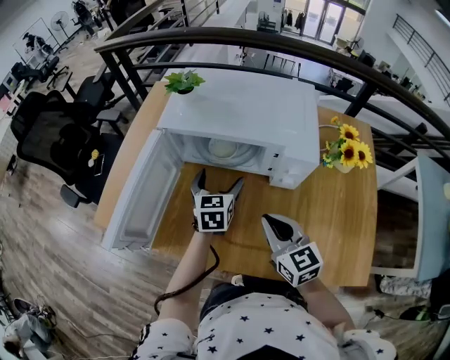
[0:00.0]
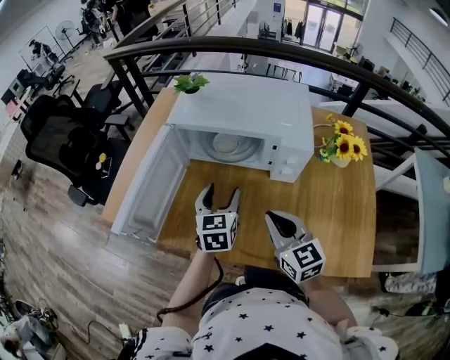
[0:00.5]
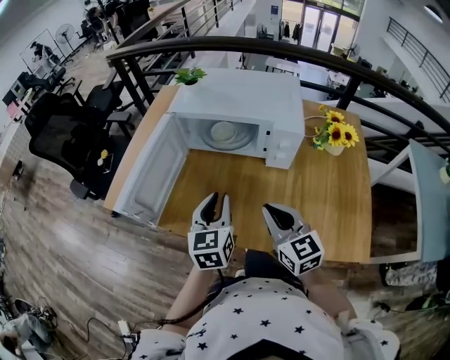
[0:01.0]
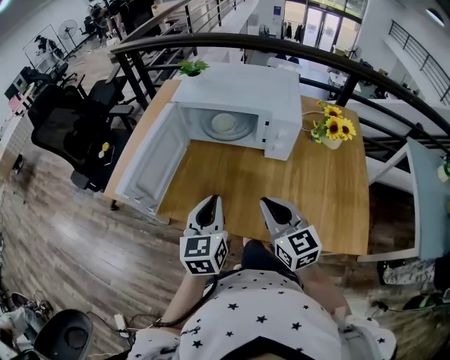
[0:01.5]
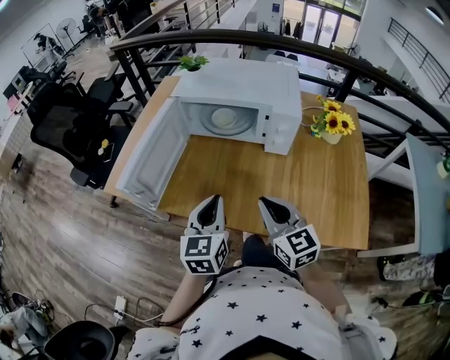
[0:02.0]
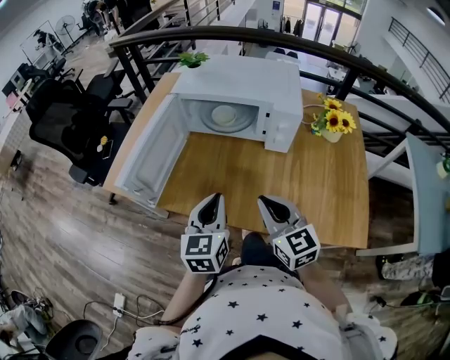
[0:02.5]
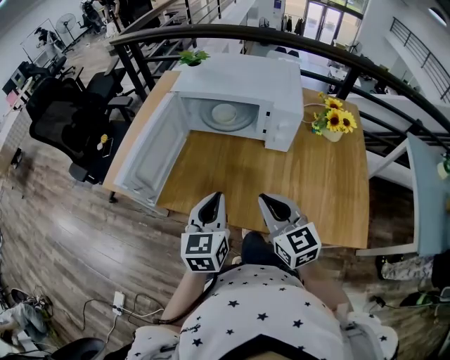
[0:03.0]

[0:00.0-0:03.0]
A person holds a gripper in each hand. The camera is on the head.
0:00.0 to 0:01.5: The left gripper goes about 25 cm backward, and closes up; the right gripper shifts roughly 10 cm backward.
0:01.5 to 0:03.0: The grippers stay close to where they were, moving slightly.

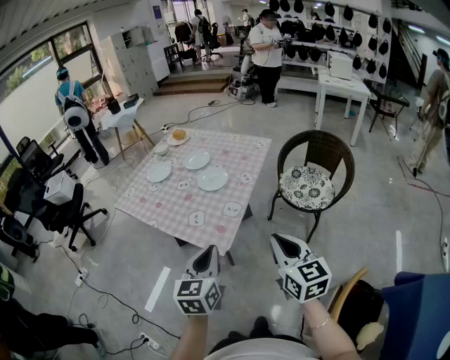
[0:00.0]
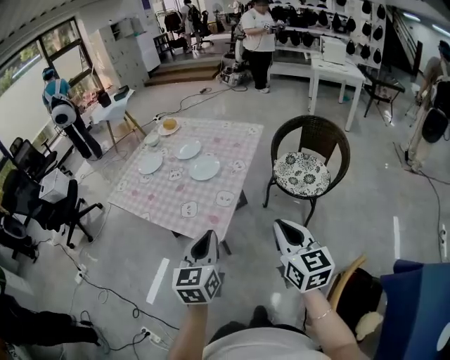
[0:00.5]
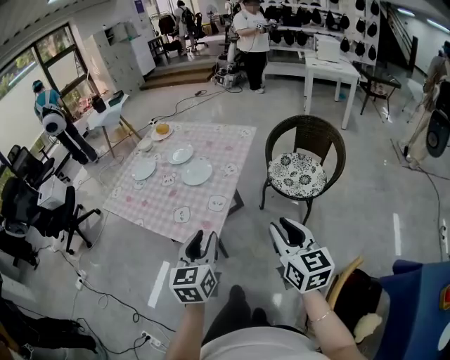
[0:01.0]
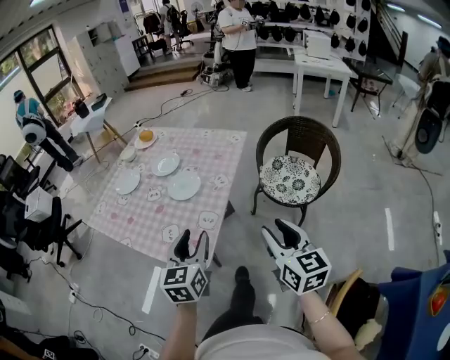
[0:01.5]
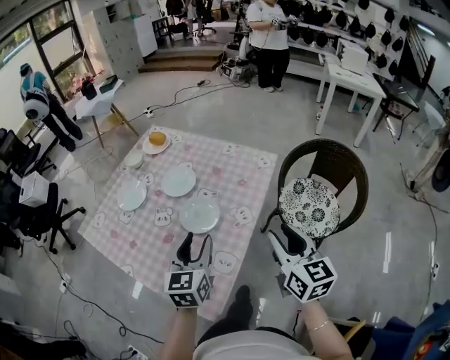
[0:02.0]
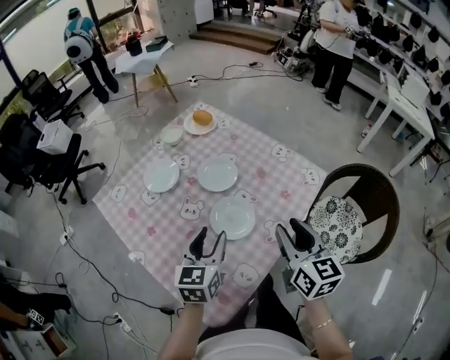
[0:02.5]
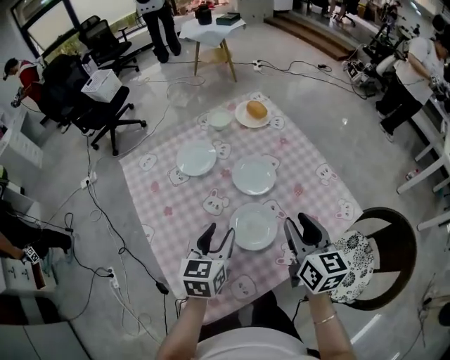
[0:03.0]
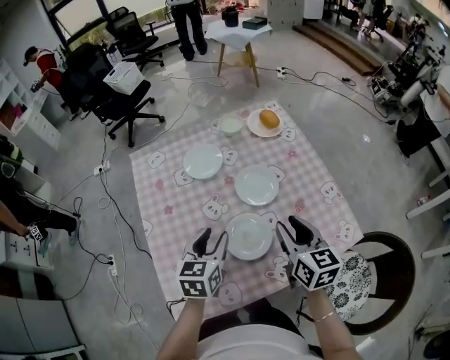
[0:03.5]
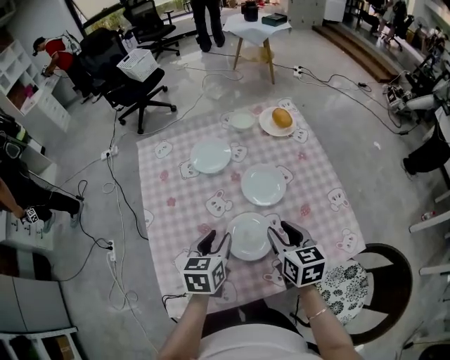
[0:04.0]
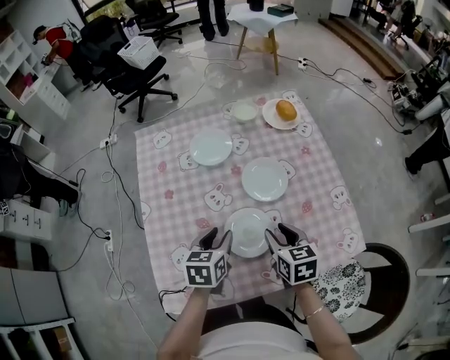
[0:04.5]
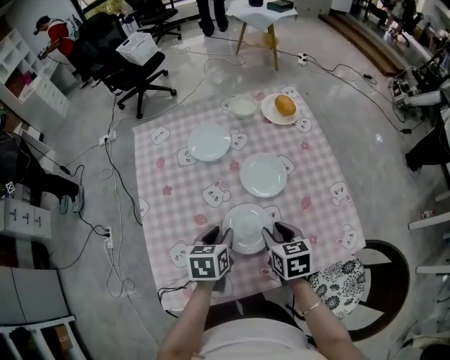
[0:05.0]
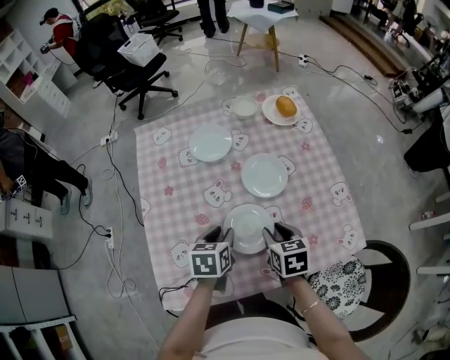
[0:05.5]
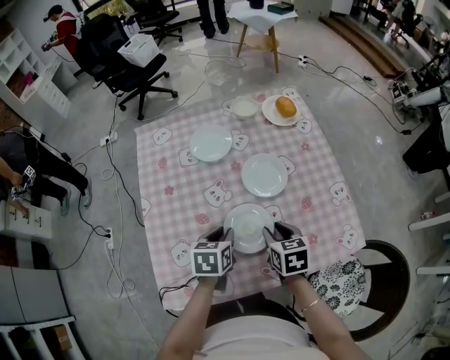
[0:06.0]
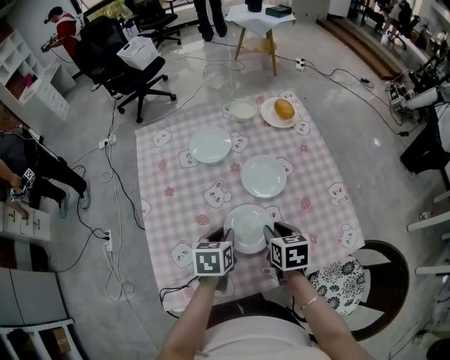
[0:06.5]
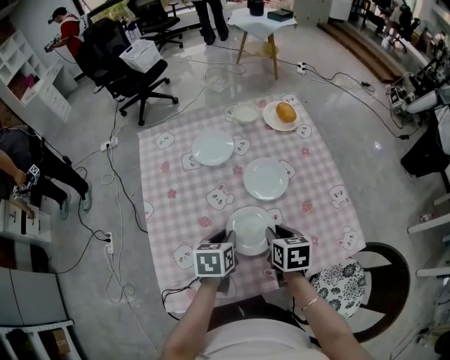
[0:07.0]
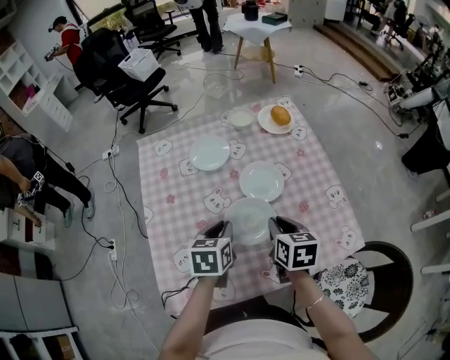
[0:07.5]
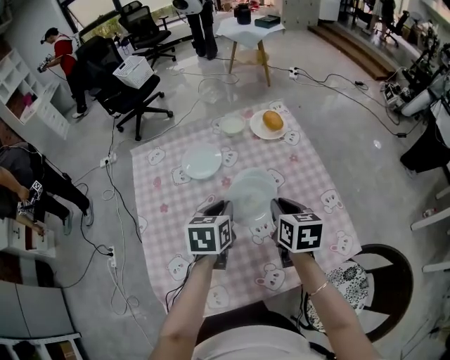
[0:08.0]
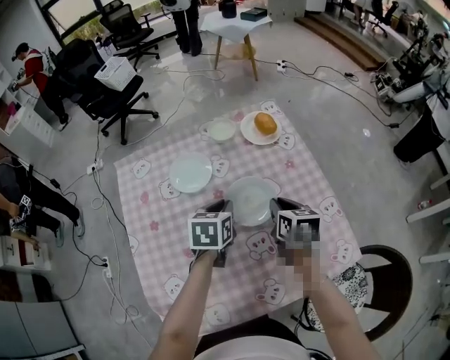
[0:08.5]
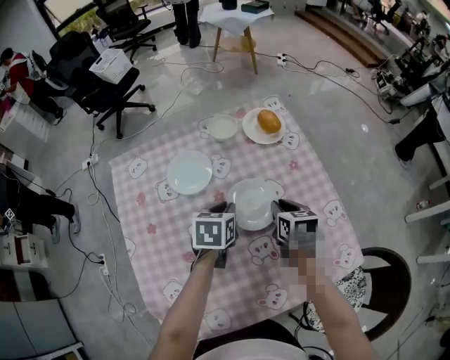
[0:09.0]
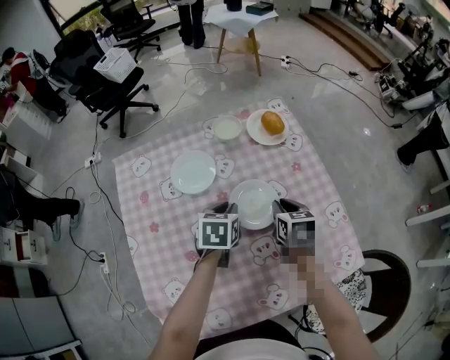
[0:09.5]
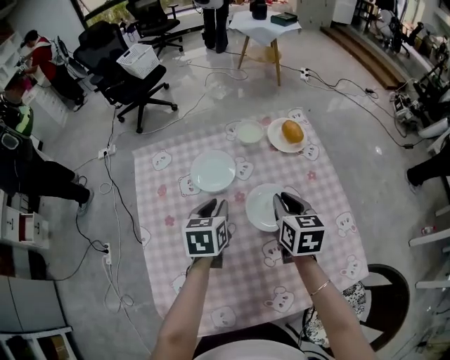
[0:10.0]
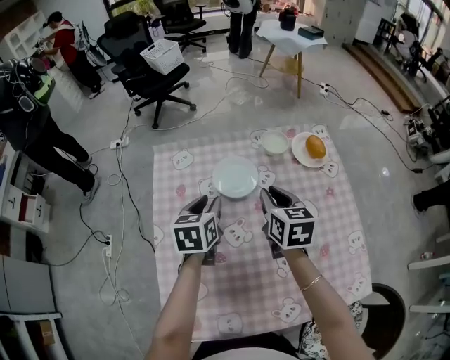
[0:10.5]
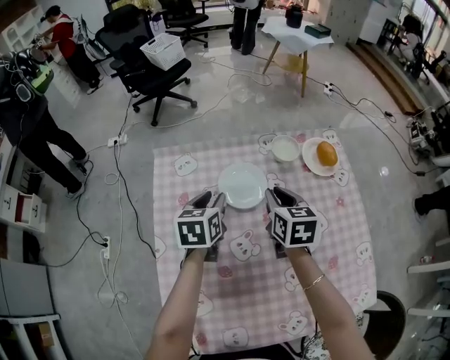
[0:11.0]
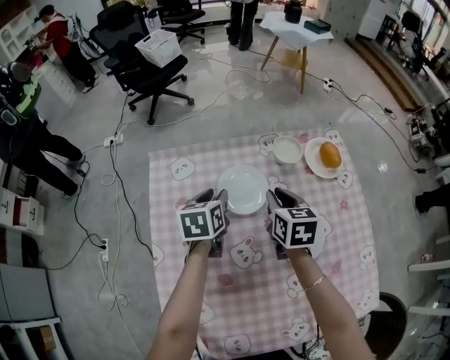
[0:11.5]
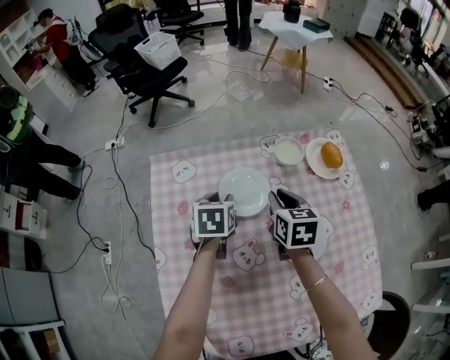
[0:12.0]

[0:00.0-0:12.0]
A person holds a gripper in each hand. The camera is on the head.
0:00.0 to 0:02.0: Both grippers move forward, roughly 35 cm. The left gripper opens its fingers, while the right gripper opens.
0:02.0 to 0:04.0: The left gripper ends up roughly 20 cm from where it was, and changes its angle by about 50 degrees; the right gripper shifts by approximately 35 cm, and rotates roughly 60 degrees.
0:04.0 to 0:06.0: The two grippers go about 5 cm downward.
0:06.0 to 0:08.0: The left gripper is displaced forward and upward by roughly 15 cm. The right gripper heads upward, forward and to the right, covering some 15 cm, and closes up.
0:08.0 to 0:10.0: The grippers both shift forward and to the left by about 10 cm.
0:10.0 to 0:12.0: The right gripper shifts about 20 cm forward and to the left. Meanwhile the left gripper goes roughly 20 cm forward, to the left and downward.

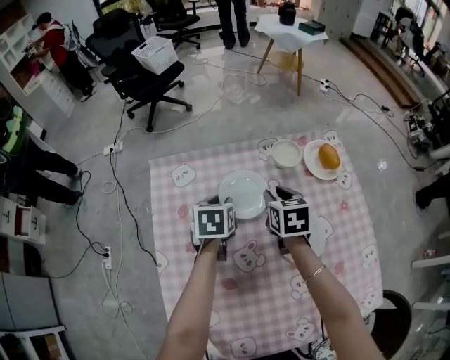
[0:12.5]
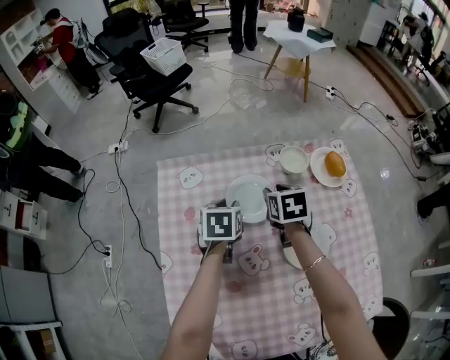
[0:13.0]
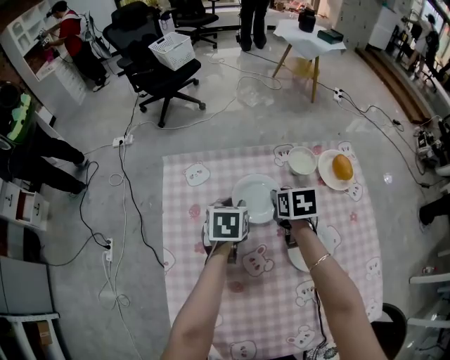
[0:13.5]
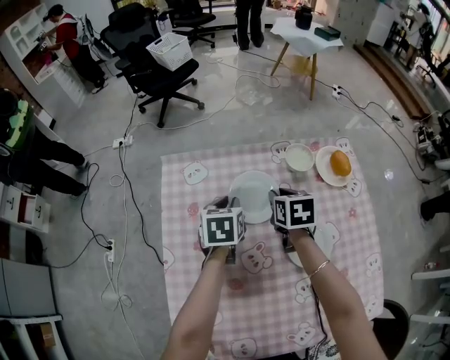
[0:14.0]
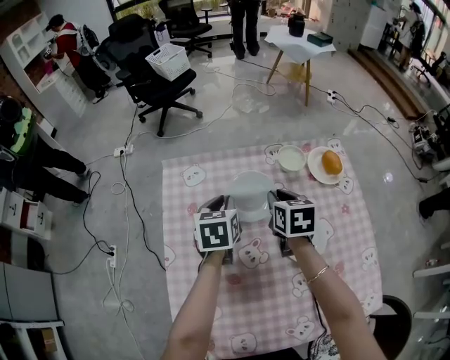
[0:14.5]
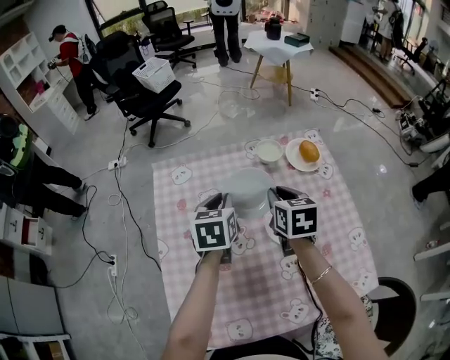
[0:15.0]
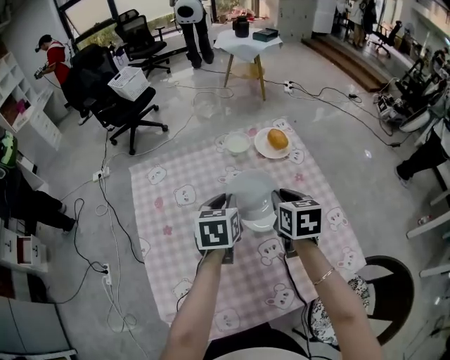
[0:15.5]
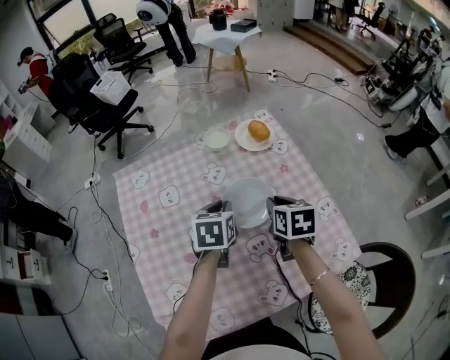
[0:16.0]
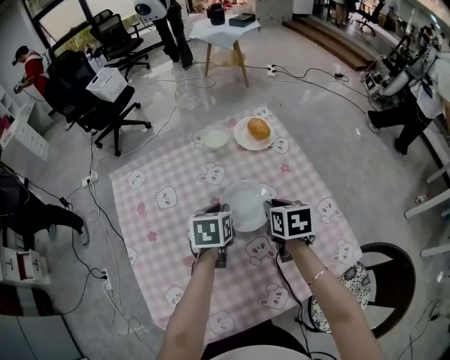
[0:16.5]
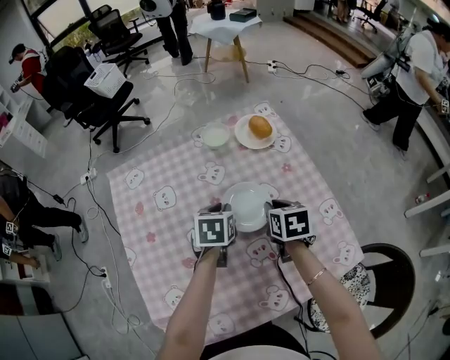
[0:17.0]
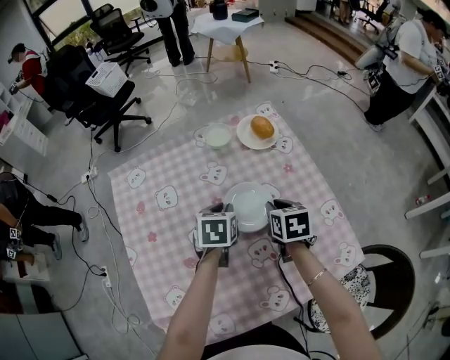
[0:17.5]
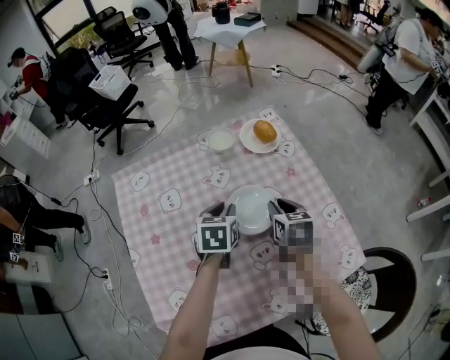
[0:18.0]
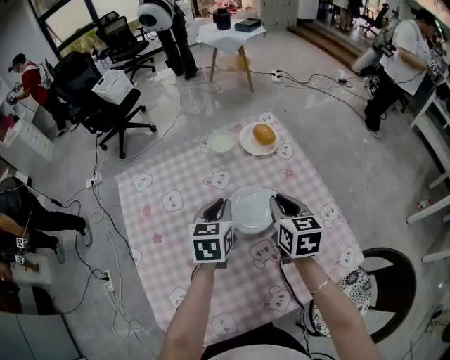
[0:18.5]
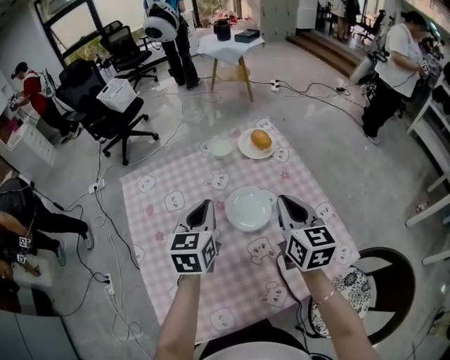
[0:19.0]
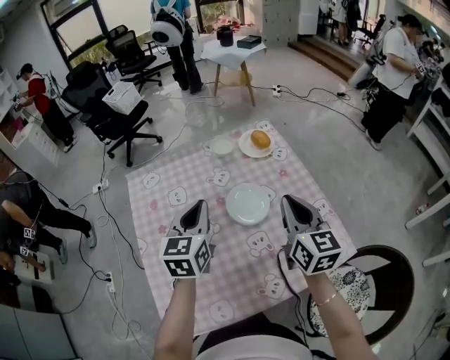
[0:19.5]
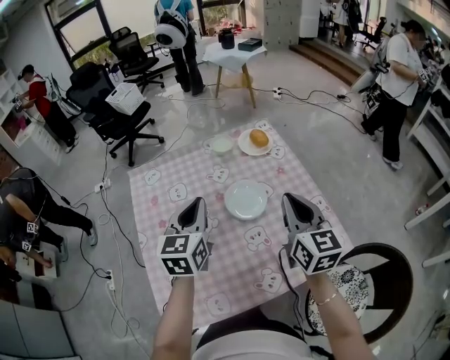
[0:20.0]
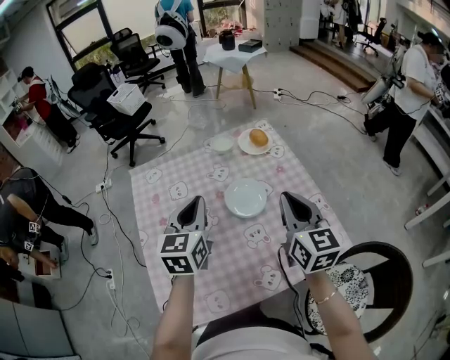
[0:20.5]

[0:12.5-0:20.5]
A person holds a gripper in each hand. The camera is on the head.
0:12.5 to 0:14.5: The left gripper goes approximately 5 cm upward, while the right gripper moves about 5 cm.
0:14.5 to 0:16.5: The two grippers go approximately 25 cm to the right and backward. The left gripper rotates about 20 degrees.
0:16.5 to 0:18.5: Both grippers travel together upward, some 5 cm.
0:18.5 to 0:20.5: The two grippers go roughly 20 cm upward and backward. The right gripper turns by some 20 degrees.

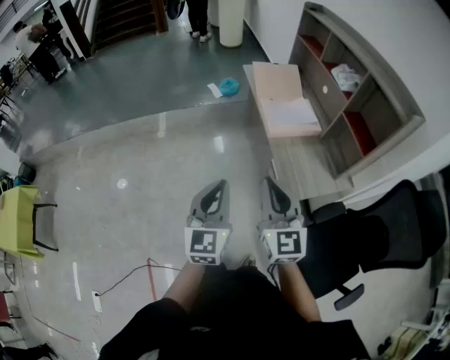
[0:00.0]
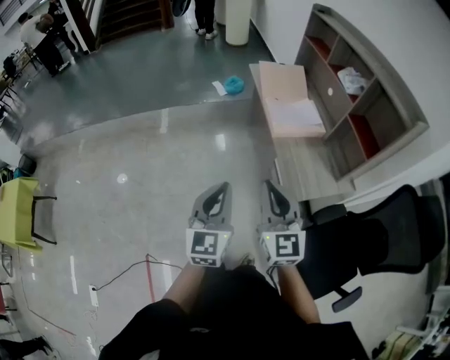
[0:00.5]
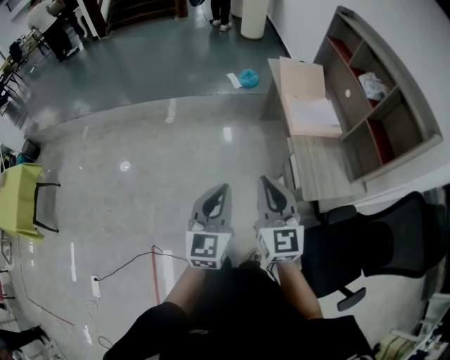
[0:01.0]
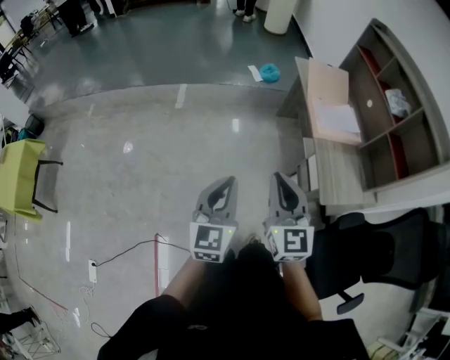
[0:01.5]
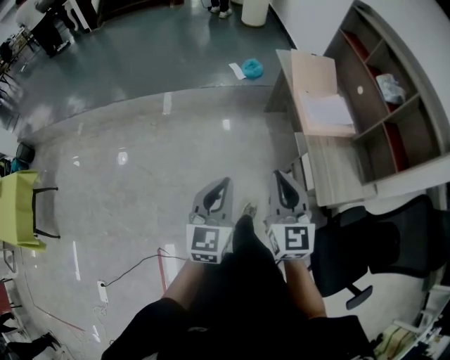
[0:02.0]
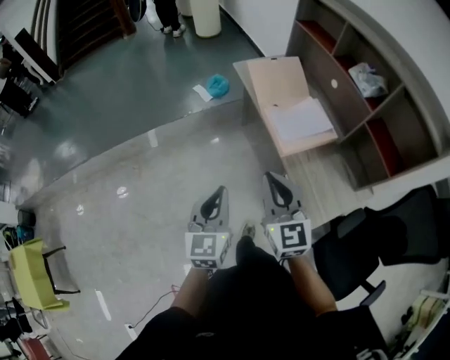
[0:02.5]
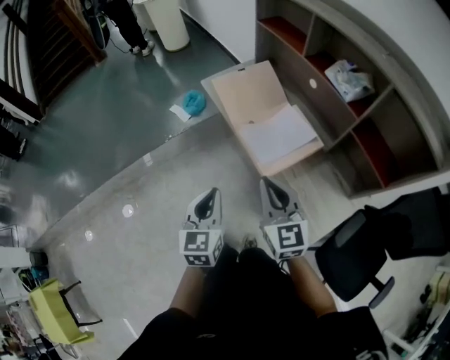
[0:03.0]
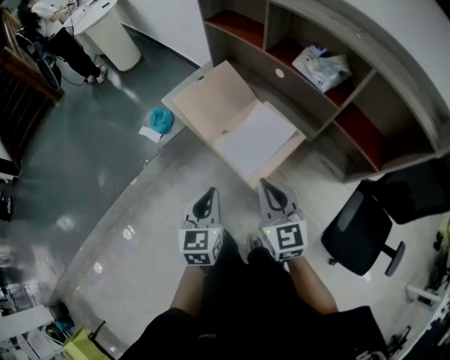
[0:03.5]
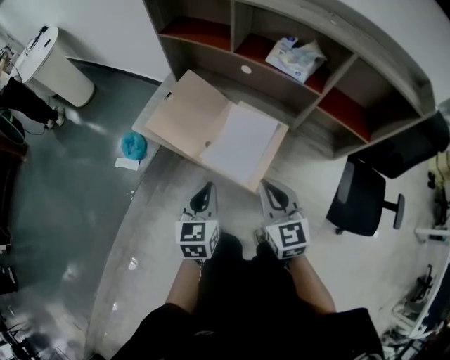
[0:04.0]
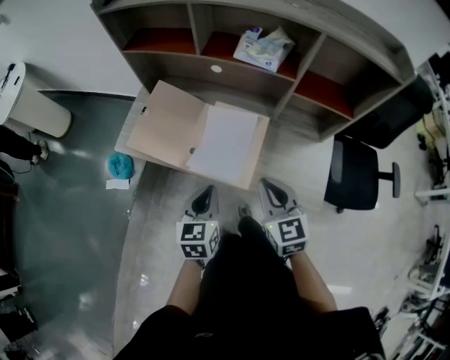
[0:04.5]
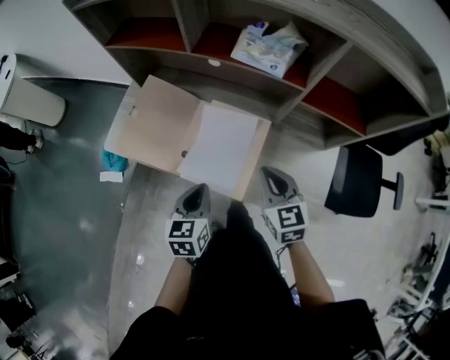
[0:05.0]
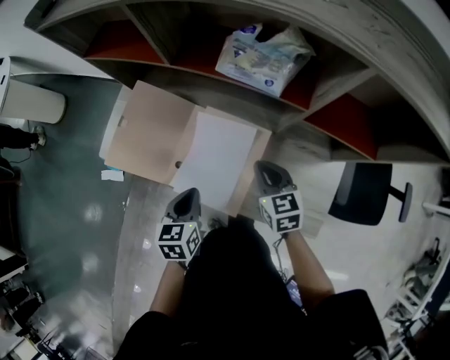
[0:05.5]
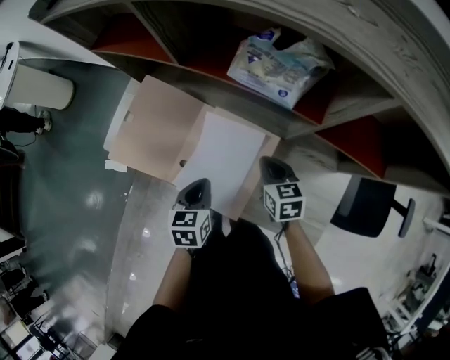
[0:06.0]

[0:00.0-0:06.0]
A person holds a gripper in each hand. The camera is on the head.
0:00.0 to 0:02.0: The left gripper is displaced to the left, forward and downward by roughly 15 cm, while the right gripper moves to the left and forward, roughly 15 cm.
0:02.0 to 0:04.0: The two grippers travel together, about 50 cm. The left gripper changes its angle by approximately 50 degrees, while the right gripper turns by roughly 50 degrees.
0:04.0 to 0:06.0: The two grippers go about 25 cm forward, downward and to the right. The left gripper rotates approximately 20 degrees; the right gripper turns by approximately 30 degrees.
